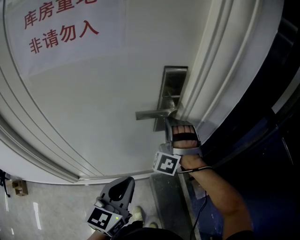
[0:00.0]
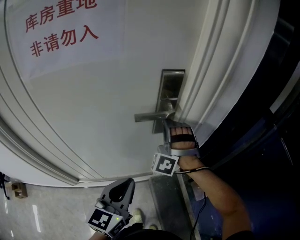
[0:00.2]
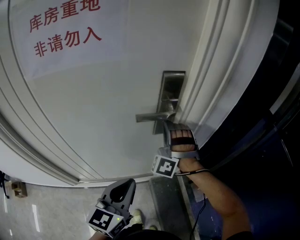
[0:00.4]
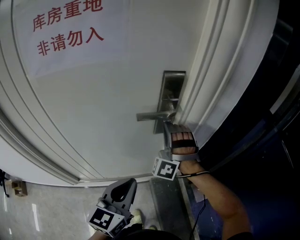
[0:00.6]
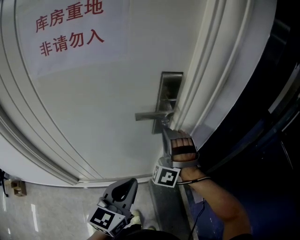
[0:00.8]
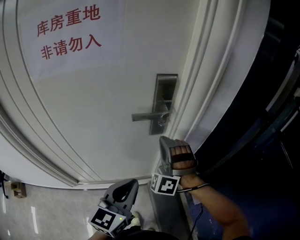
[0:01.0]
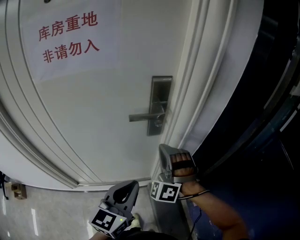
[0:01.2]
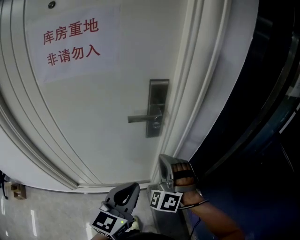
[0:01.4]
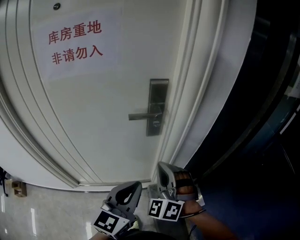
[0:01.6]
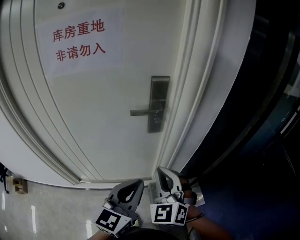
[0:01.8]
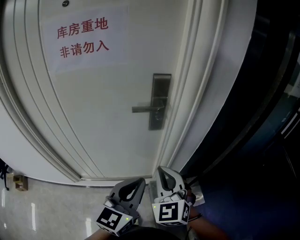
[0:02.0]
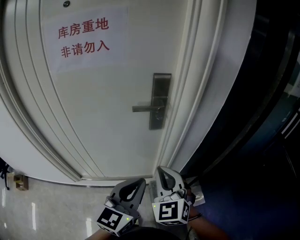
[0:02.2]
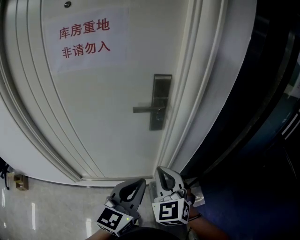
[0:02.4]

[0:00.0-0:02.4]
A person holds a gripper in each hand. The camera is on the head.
0:00.0 to 0:01.2: The right gripper heads backward, covering approximately 10 cm. Meanwhile the left gripper changes place by some 5 cm.
0:01.2 to 0:02.4: The right gripper travels backward by roughly 15 cm, and rolls clockwise, seen from behind, by about 50 degrees. The left gripper moves backward, approximately 5 cm.

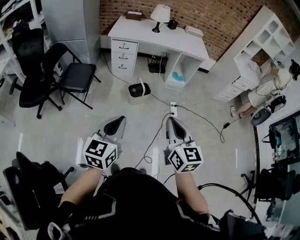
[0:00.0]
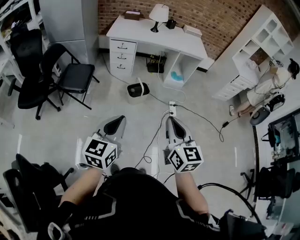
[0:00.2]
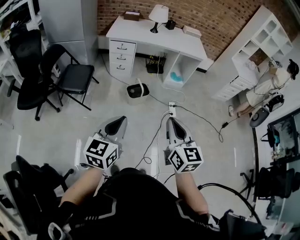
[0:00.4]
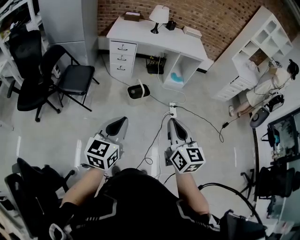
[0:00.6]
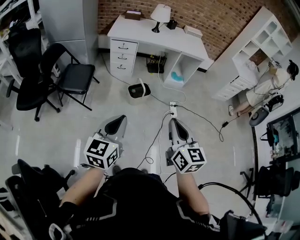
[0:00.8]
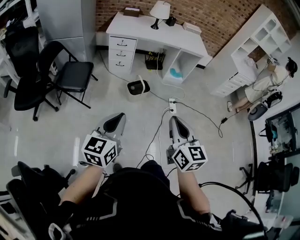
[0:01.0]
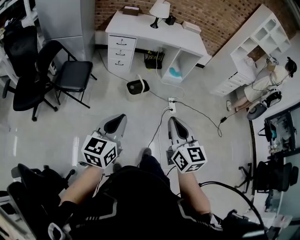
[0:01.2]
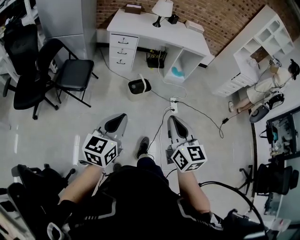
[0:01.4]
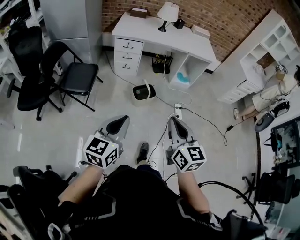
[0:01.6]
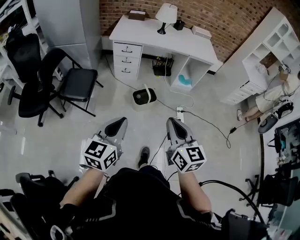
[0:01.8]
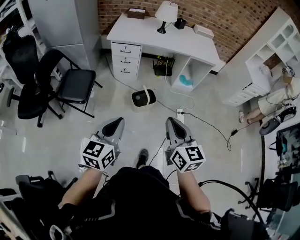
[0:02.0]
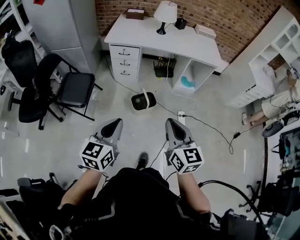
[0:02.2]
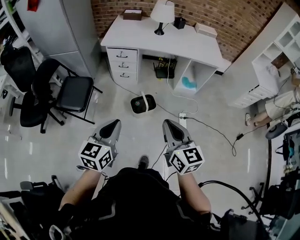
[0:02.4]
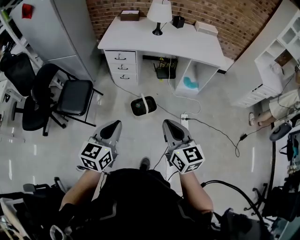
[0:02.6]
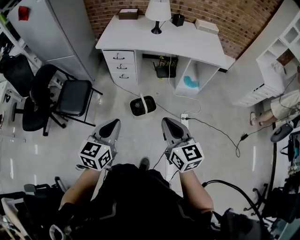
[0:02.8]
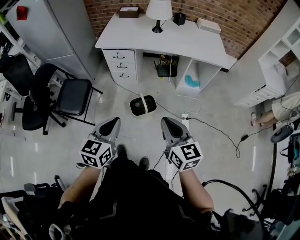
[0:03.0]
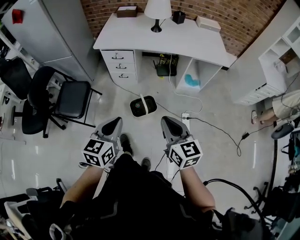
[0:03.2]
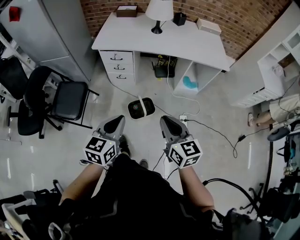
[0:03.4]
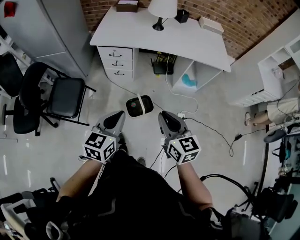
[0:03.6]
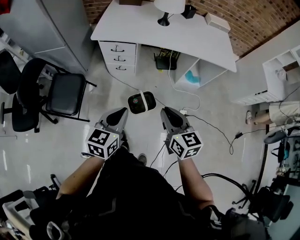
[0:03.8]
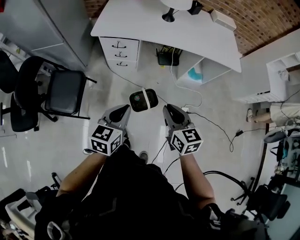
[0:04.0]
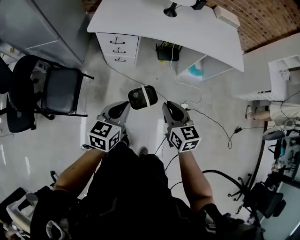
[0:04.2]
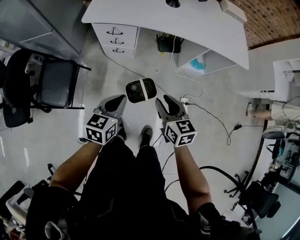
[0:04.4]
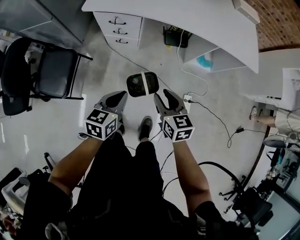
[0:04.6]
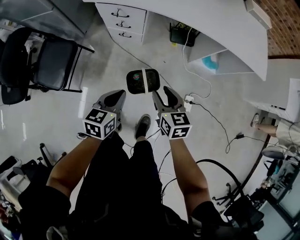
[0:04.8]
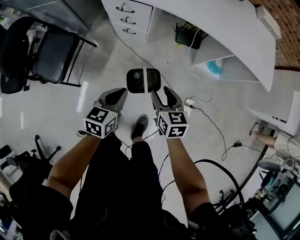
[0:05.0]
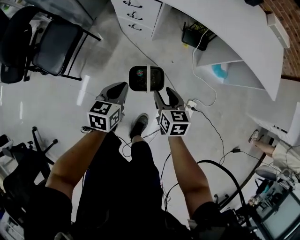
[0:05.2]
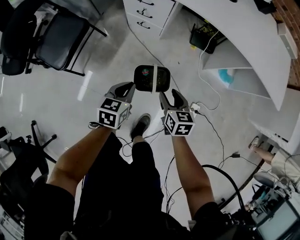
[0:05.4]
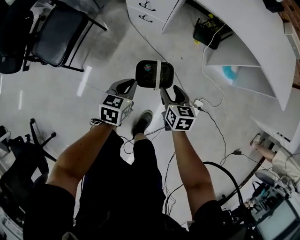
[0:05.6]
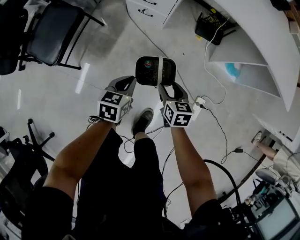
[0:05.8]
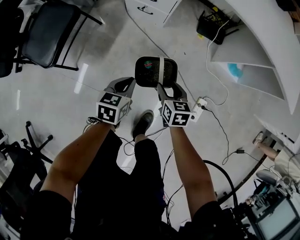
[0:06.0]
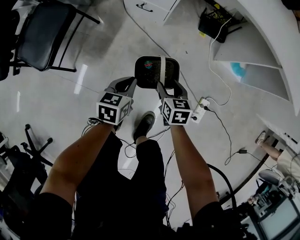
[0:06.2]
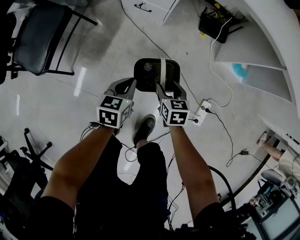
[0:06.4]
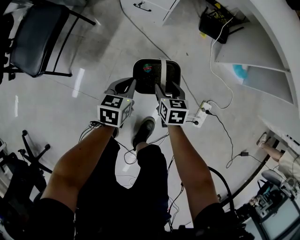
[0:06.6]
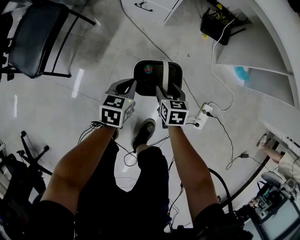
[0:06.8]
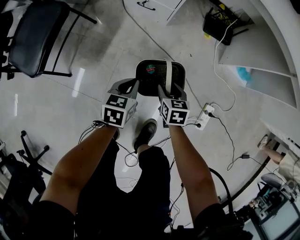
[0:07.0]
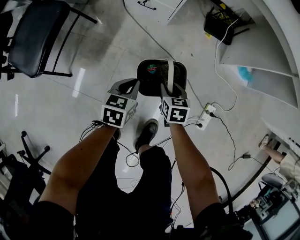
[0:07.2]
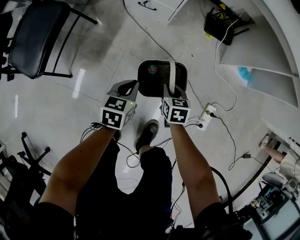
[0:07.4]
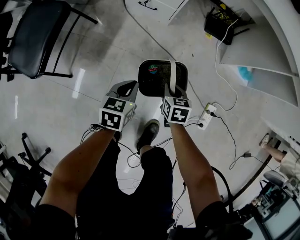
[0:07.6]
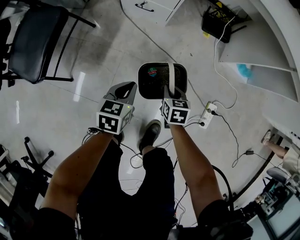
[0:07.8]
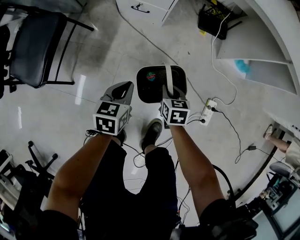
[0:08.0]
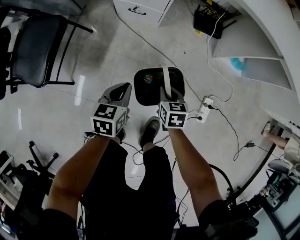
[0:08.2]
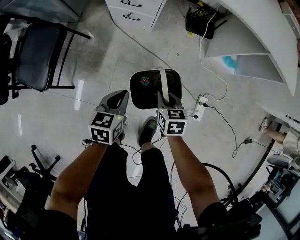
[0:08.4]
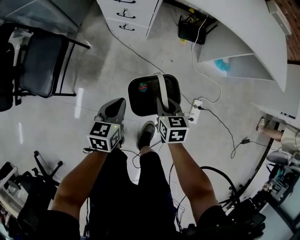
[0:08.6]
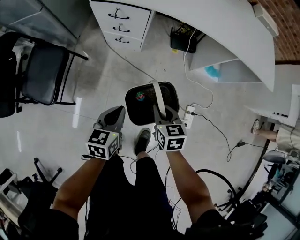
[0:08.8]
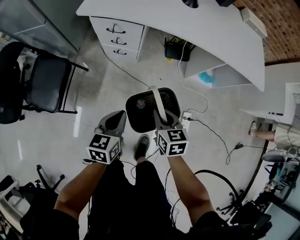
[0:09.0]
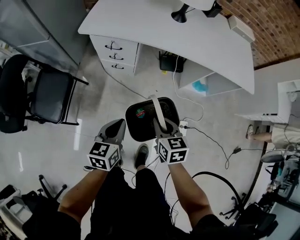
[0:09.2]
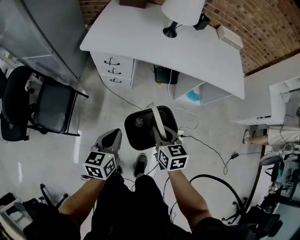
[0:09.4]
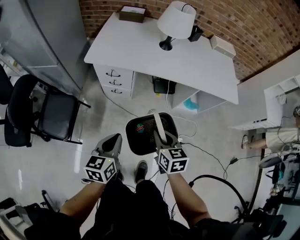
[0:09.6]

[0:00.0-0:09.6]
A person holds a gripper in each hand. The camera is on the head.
0:00.0 to 0:01.6: Both grippers move forward and to the left, some 10 cm.
0:01.6 to 0:03.2: The grippers both shift forward by approximately 30 cm.
0:03.2 to 0:04.8: The right gripper shifts approximately 35 cm forward and downward, swivels about 20 degrees, and opens up, while the left gripper moves downward and forward, about 35 cm.
0:04.8 to 0:06.4: Both grippers travel together downward, about 35 cm.
0:06.4 to 0:08.0: The right gripper closes its fingers.
0:08.0 to 0:09.6: Both grippers move upward, some 50 cm. The right gripper rotates some 20 degrees.

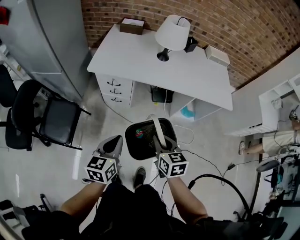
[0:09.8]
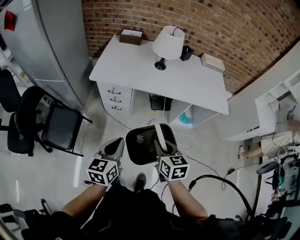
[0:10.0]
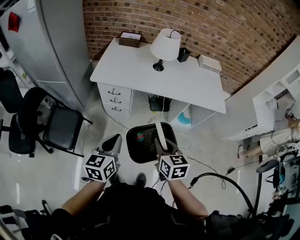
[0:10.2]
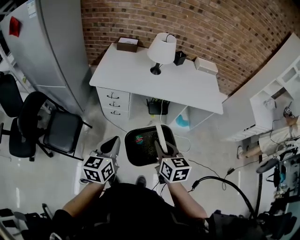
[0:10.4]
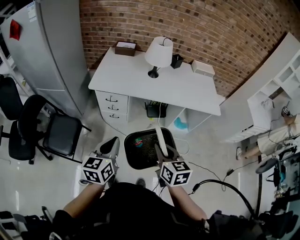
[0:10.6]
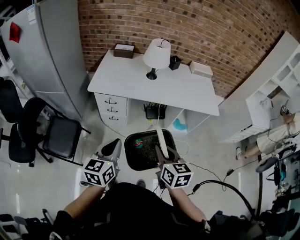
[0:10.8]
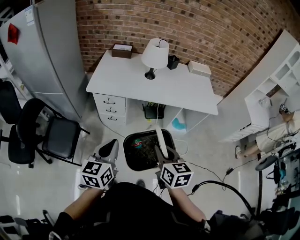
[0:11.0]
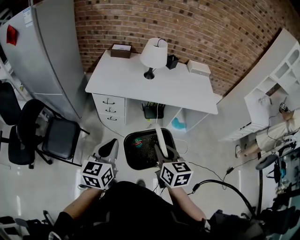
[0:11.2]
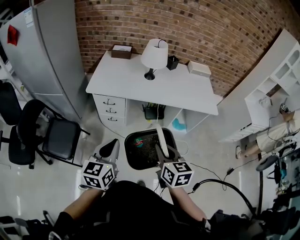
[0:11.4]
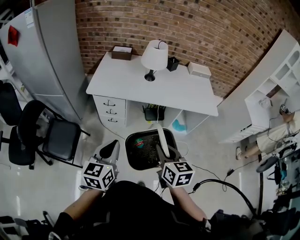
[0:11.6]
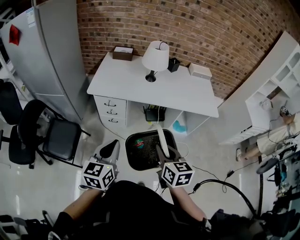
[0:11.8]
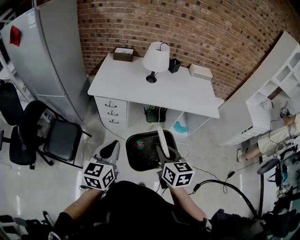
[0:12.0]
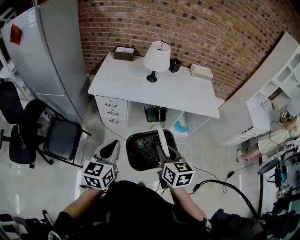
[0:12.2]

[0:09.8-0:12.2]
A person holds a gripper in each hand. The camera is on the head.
0:09.8 to 0:11.0: The right gripper heads upward and backward, covering some 15 cm. The left gripper shifts some 10 cm upward.
0:11.0 to 0:12.2: The grippers make only small movements.

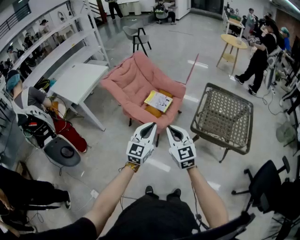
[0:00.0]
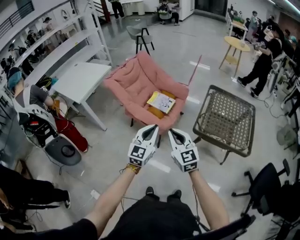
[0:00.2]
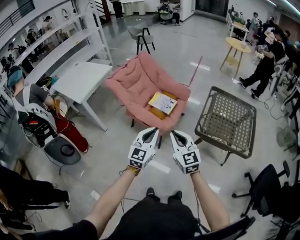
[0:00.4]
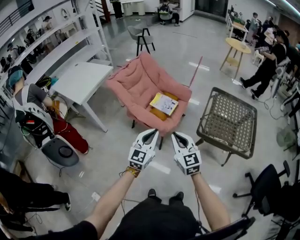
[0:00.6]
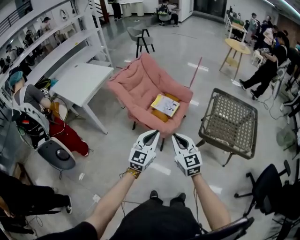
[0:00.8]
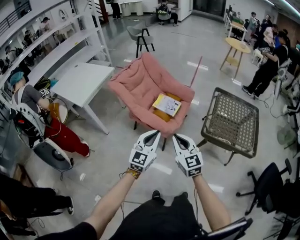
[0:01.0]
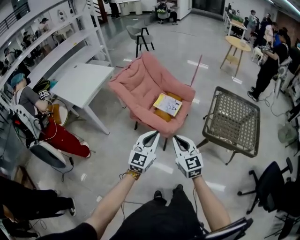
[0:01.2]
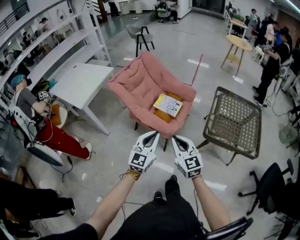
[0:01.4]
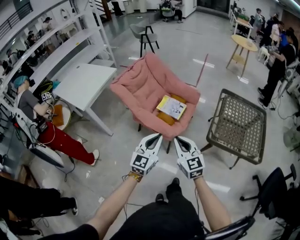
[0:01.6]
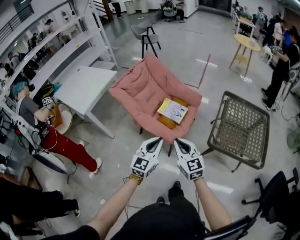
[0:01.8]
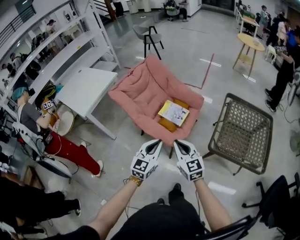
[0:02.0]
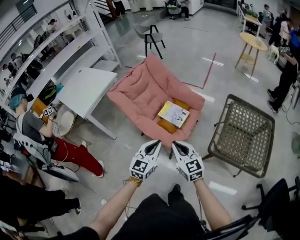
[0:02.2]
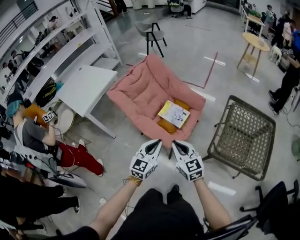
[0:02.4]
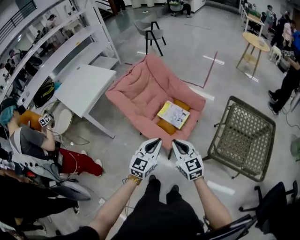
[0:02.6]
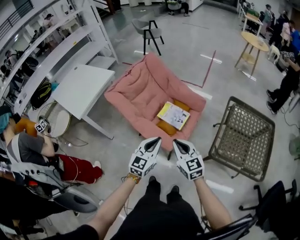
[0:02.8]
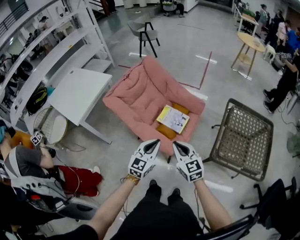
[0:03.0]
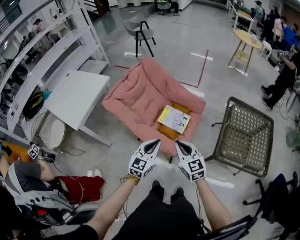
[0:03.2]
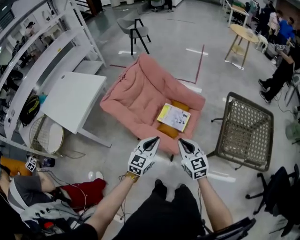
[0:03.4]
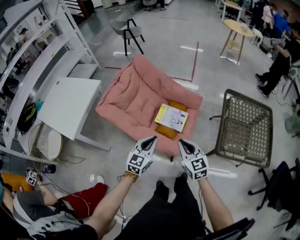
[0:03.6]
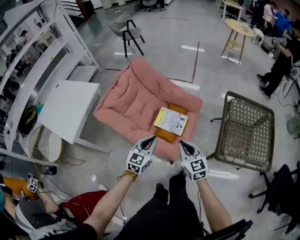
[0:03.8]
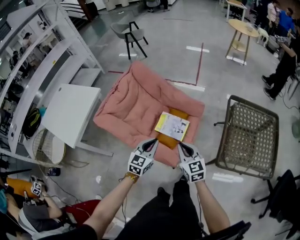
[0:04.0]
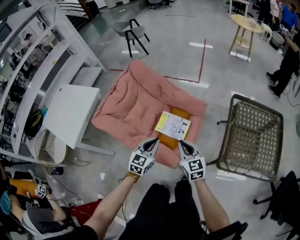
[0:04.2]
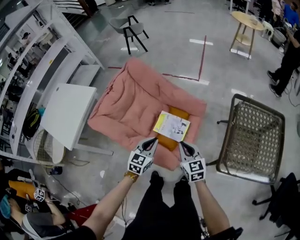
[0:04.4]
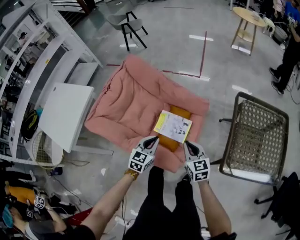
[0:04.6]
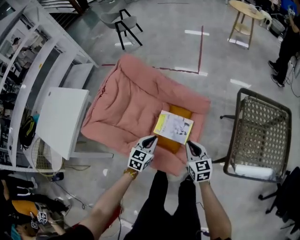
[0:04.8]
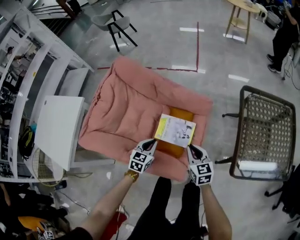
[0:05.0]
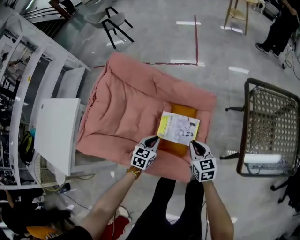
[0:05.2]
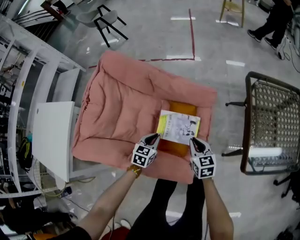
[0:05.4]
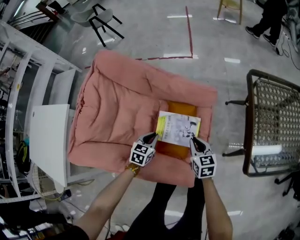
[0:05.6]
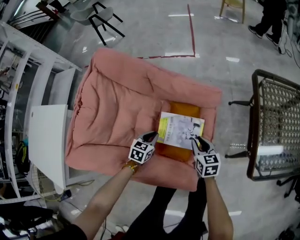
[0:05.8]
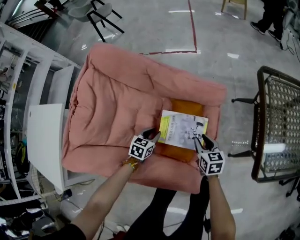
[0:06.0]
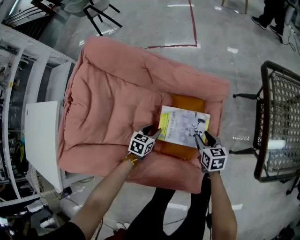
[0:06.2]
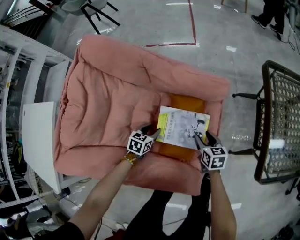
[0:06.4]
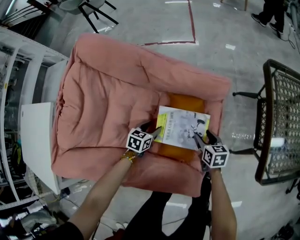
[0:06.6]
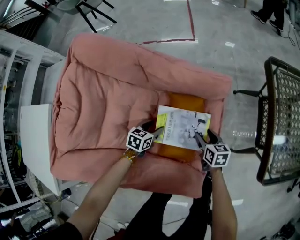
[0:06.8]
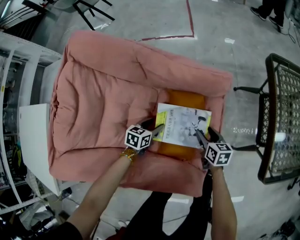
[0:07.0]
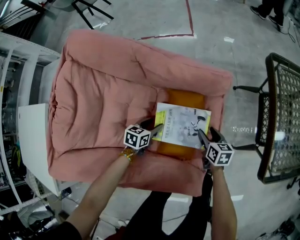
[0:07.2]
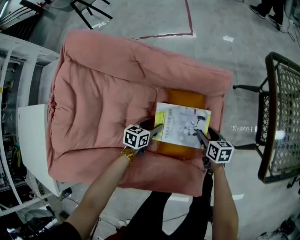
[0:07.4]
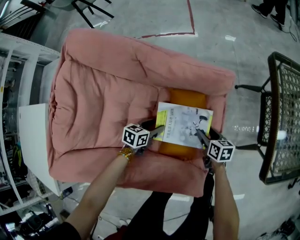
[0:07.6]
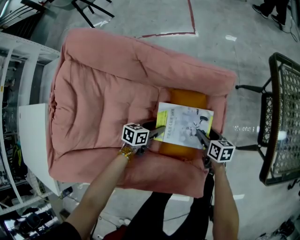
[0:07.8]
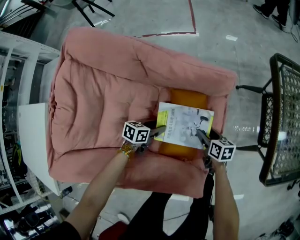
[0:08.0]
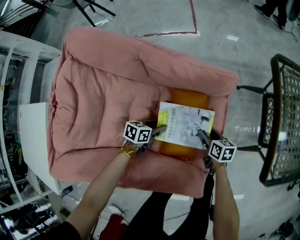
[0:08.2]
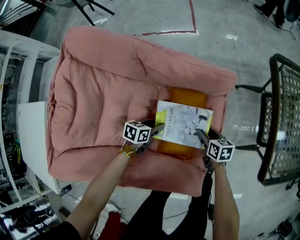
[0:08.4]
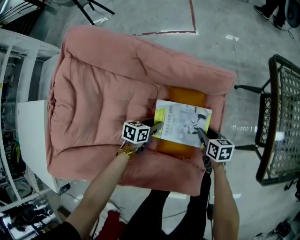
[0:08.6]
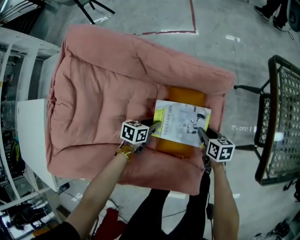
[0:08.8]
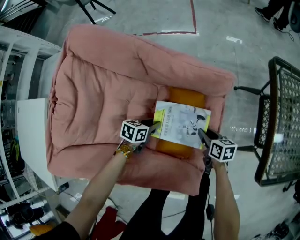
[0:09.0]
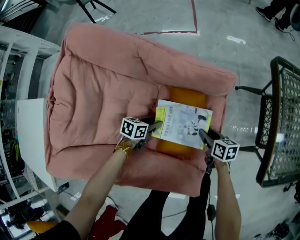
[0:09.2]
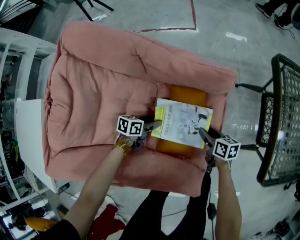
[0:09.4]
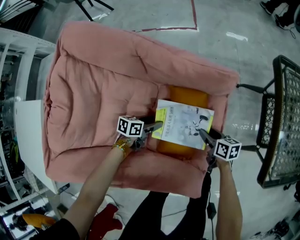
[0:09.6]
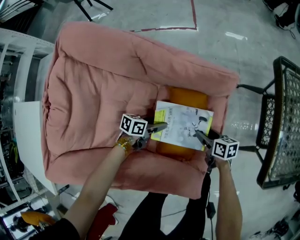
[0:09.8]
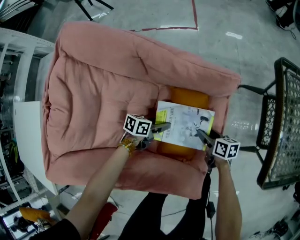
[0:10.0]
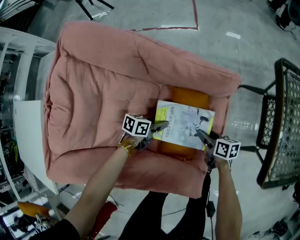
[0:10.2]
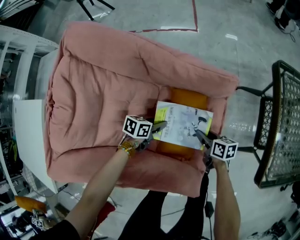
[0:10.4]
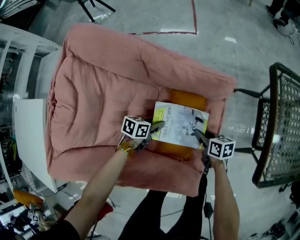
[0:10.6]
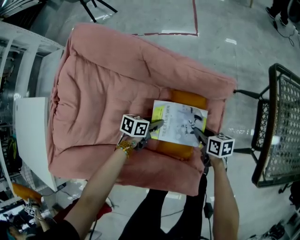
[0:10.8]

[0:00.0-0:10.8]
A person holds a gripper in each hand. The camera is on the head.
0:00.0 to 0:01.6: Both grippers move to the left and forward, about 10 cm.
0:01.6 to 0:03.0: The grippers both shift forward by roughly 20 cm.
0:03.0 to 0:04.6: The grippers both shift forward and downward by roughly 25 cm. The right gripper changes its angle by some 20 degrees.
0:04.6 to 0:06.2: The left gripper heads downward and forward, covering roughly 35 cm, changes its angle by about 30 degrees, and opens its fingers; the right gripper moves downward, about 30 cm, turns by approximately 30 degrees, and opens.
0:06.2 to 0:07.8: The right gripper is displaced downward by some 10 cm. The left gripper heads downward, covering roughly 5 cm, swivels approximately 20 degrees, and opens.
0:07.8 to 0:09.2: The right gripper closes up.
0:09.2 to 0:10.8: The right gripper shifts by approximately 5 cm.
